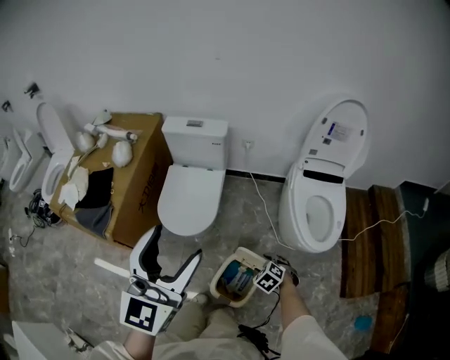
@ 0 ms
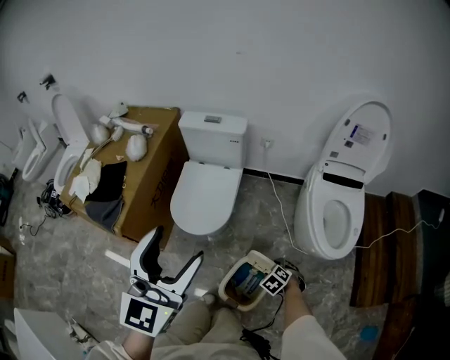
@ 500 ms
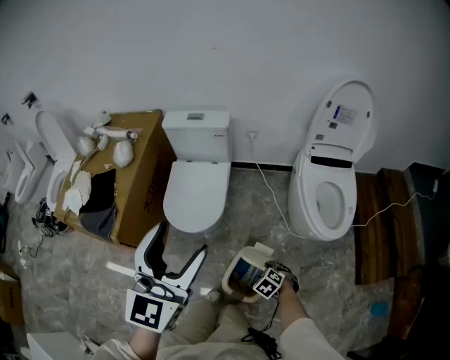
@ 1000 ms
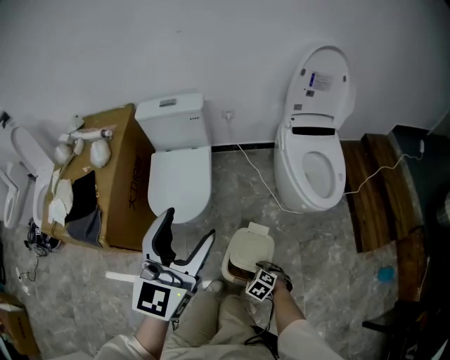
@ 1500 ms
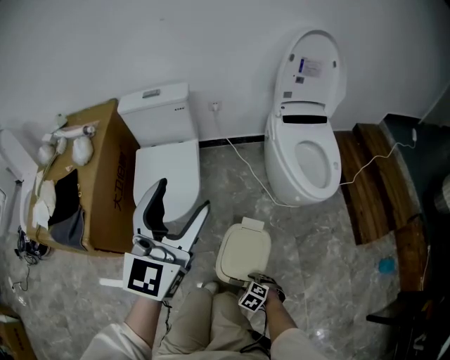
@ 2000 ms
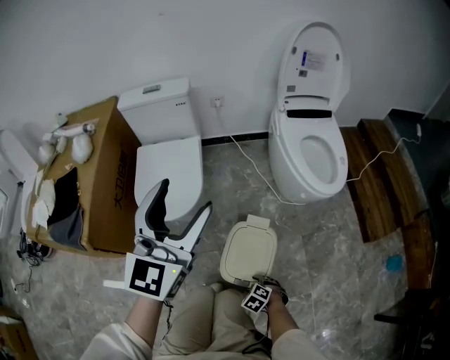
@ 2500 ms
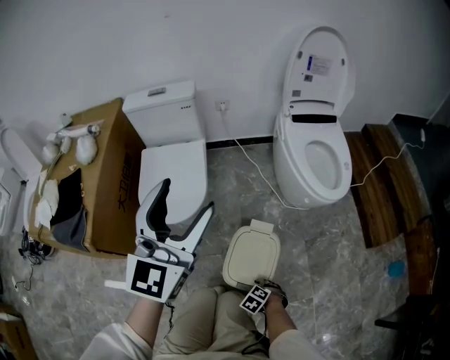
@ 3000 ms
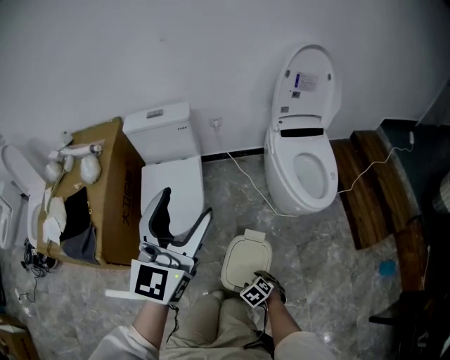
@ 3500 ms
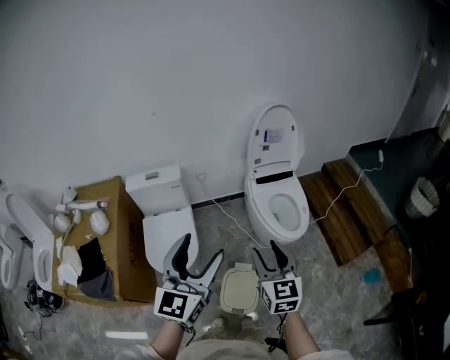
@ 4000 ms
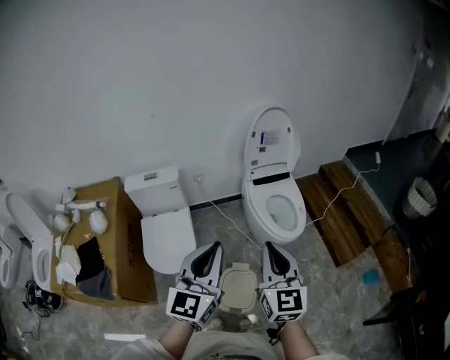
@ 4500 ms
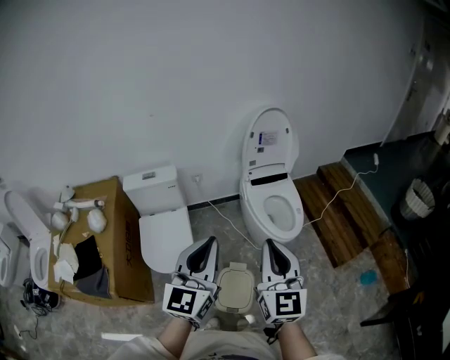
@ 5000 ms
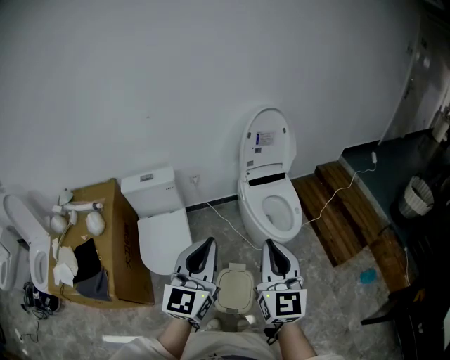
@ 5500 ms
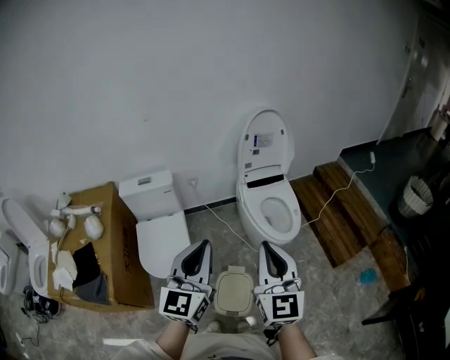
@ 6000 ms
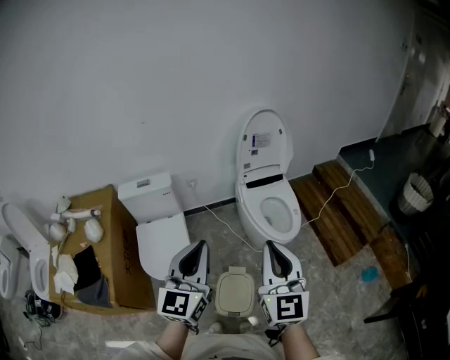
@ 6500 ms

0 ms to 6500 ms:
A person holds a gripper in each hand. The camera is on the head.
0 ms to 2000 ms: The right gripper changes place by some 30 cm; the left gripper travels downward by approximately 10 cm.
2000 ms to 4500 ms: The left gripper heads upward, covering some 15 cm, and closes its fingers, while the right gripper is displaced upward by roughly 70 cm, tilts its fingers roughly 70 degrees upward, and closes up.
4500 ms to 6500 ms: There are only small adjustments of the grippers.

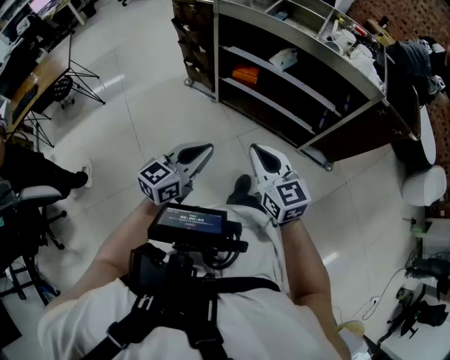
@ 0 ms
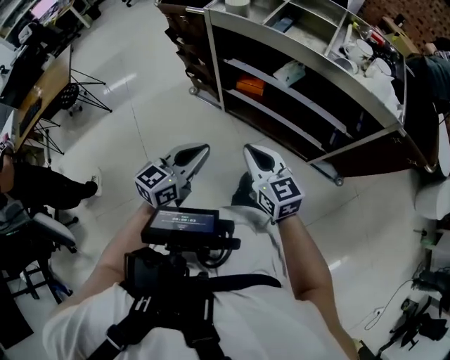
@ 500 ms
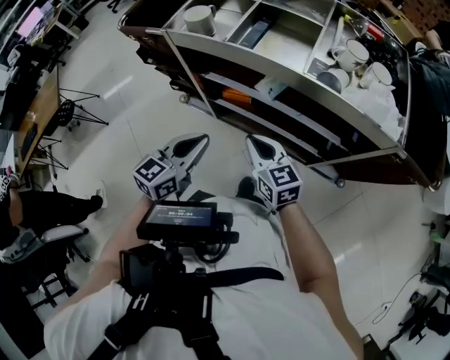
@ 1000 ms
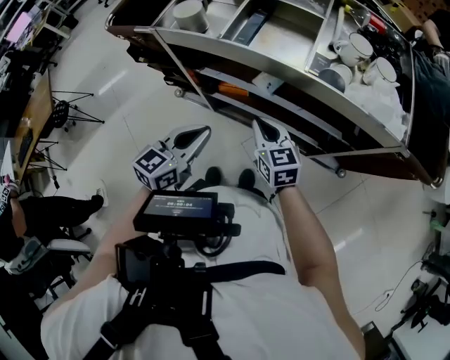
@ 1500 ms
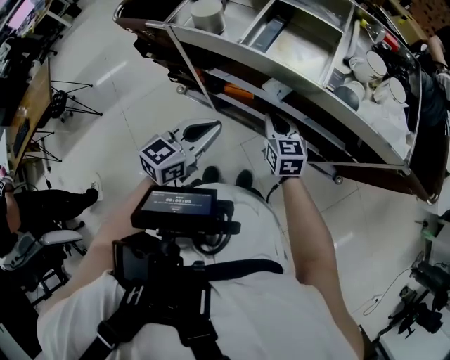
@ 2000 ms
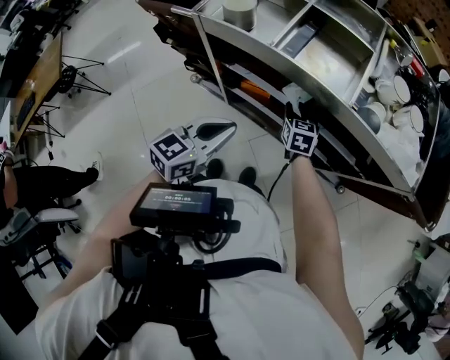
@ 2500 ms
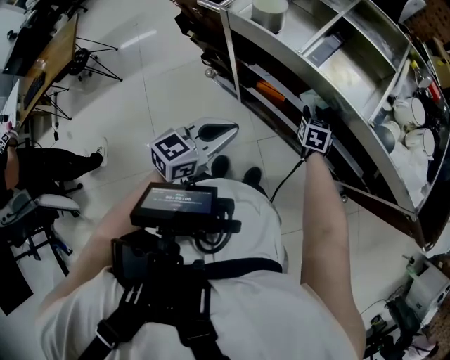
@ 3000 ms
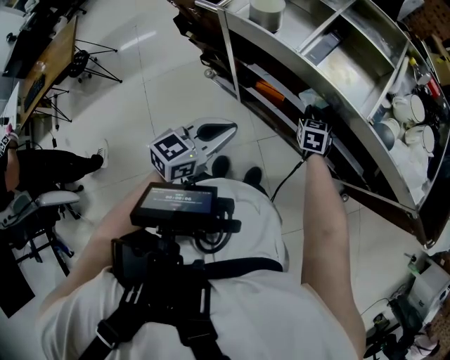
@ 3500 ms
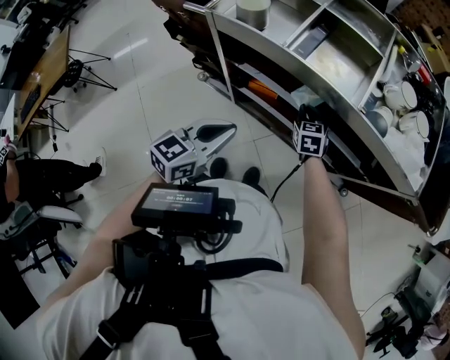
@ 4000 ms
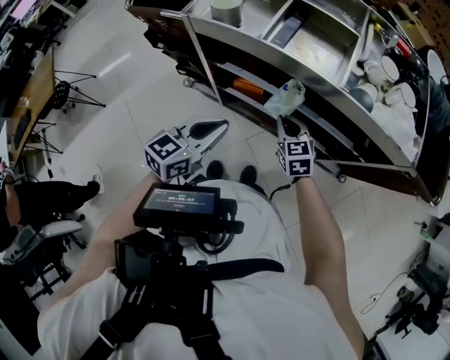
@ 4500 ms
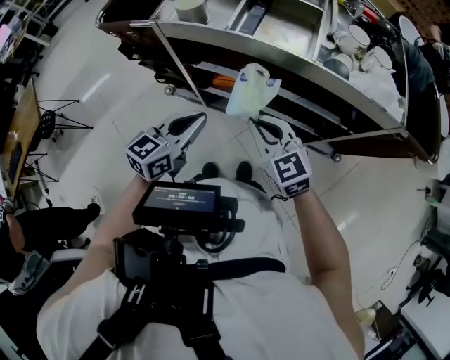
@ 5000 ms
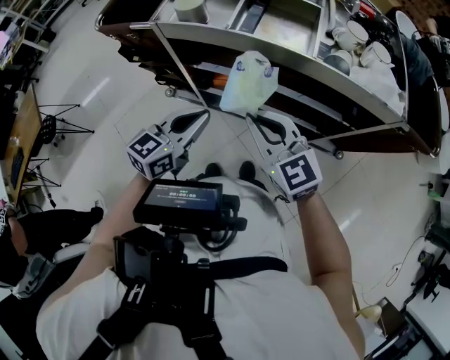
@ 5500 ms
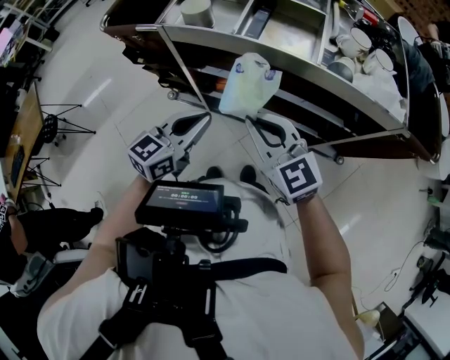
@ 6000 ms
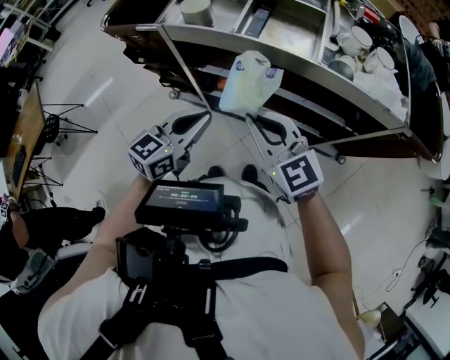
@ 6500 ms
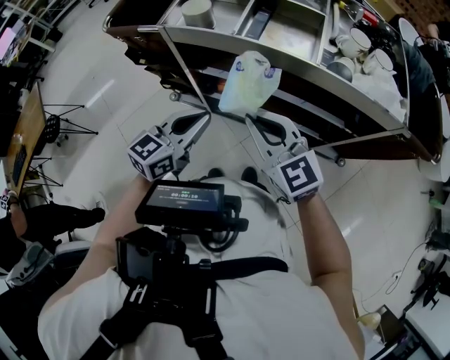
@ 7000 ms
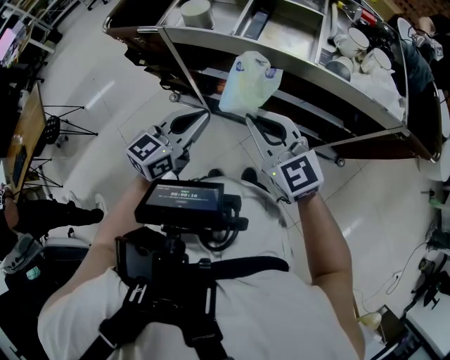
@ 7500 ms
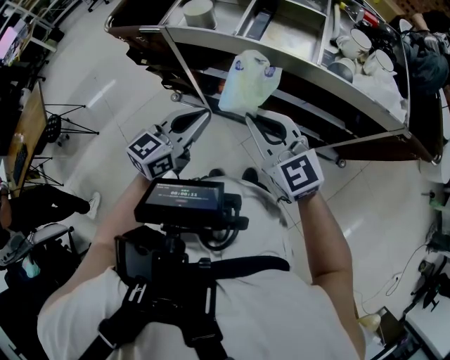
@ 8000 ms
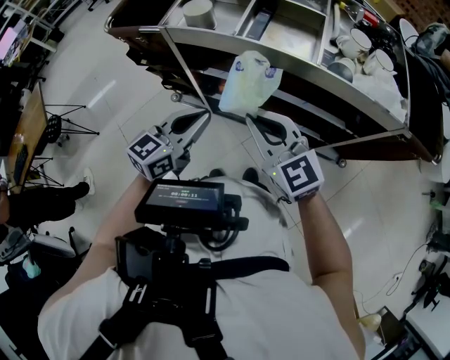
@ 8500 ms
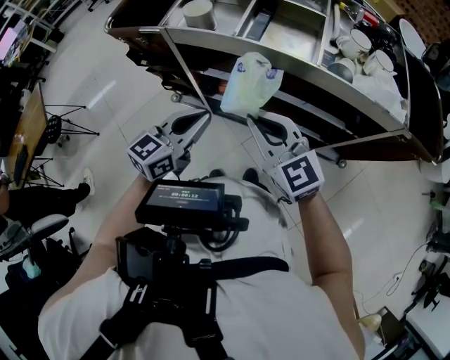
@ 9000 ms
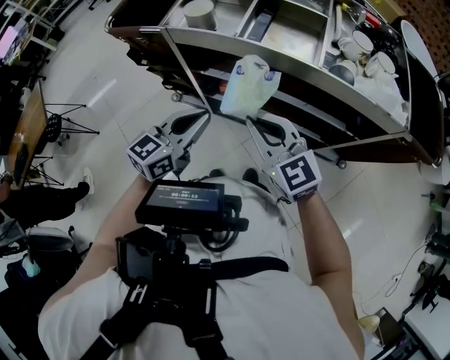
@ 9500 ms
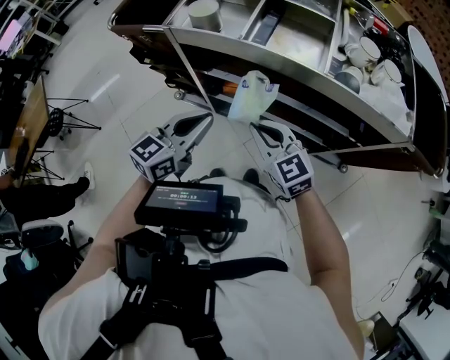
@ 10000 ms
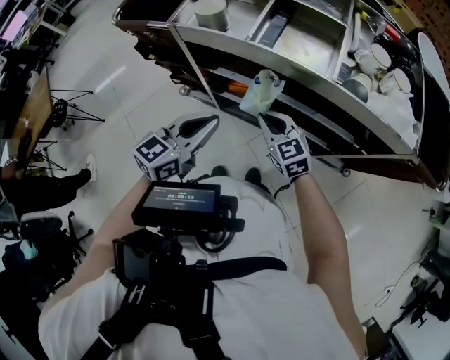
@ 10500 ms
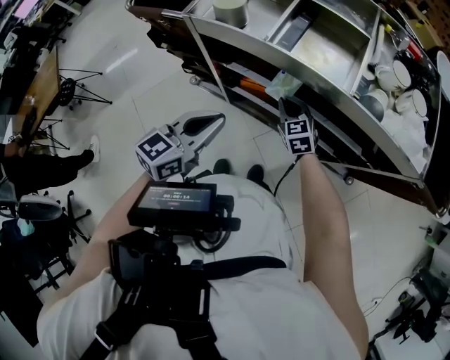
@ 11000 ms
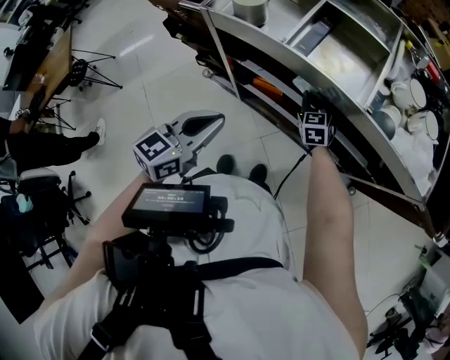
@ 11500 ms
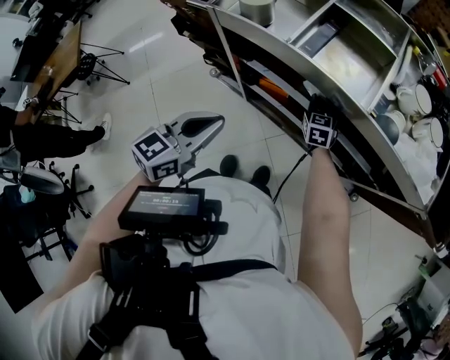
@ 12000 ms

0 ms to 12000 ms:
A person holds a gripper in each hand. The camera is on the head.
0 ms to 2000 ms: Both grippers move forward, roughly 40 cm.
2000 ms to 4000 ms: The right gripper travels forward and downward by approximately 10 cm, and opens, then closes again.
4000 ms to 6000 ms: The right gripper moves upward and backward, approximately 30 cm, and swivels approximately 30 degrees.
6000 ms to 8000 ms: Both grippers stay about where they are.
8000 ms to 10000 ms: The right gripper shifts roughly 10 cm downward.
10000 ms to 12000 ms: The right gripper is displaced forward and downward by some 30 cm, and swivels roughly 30 degrees.

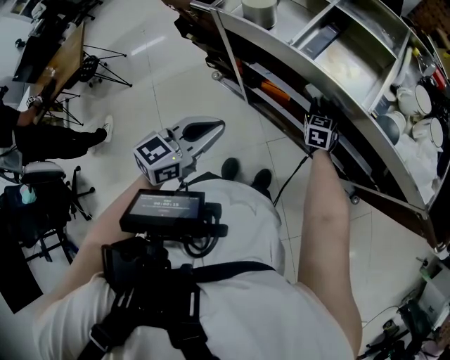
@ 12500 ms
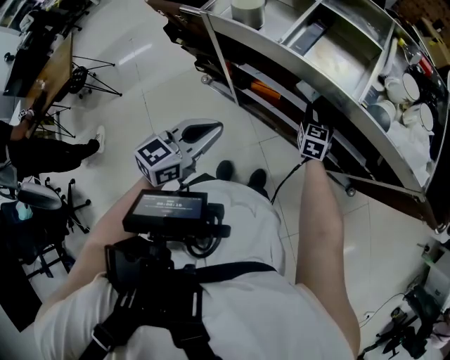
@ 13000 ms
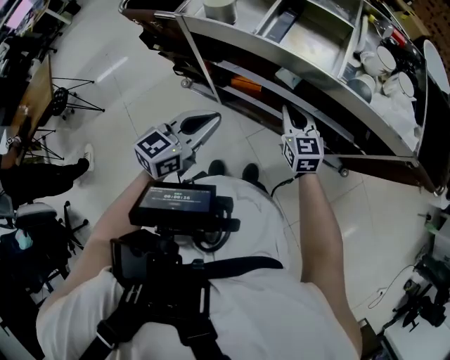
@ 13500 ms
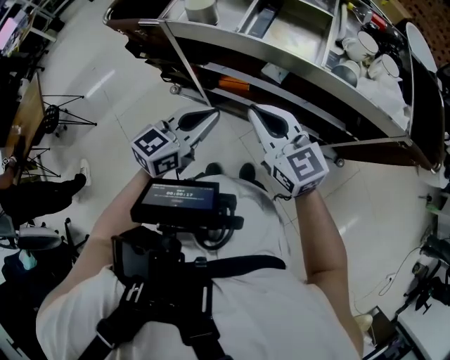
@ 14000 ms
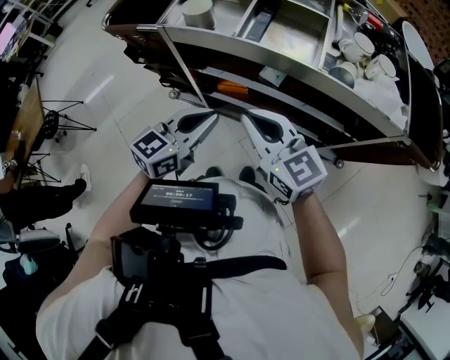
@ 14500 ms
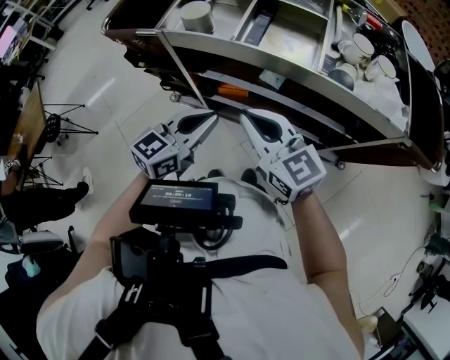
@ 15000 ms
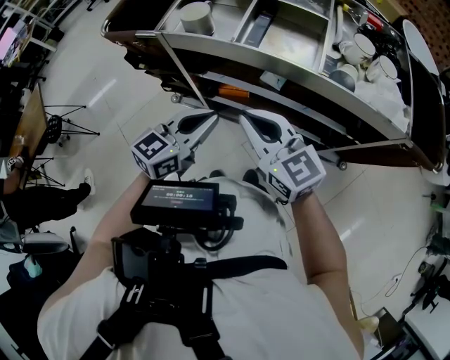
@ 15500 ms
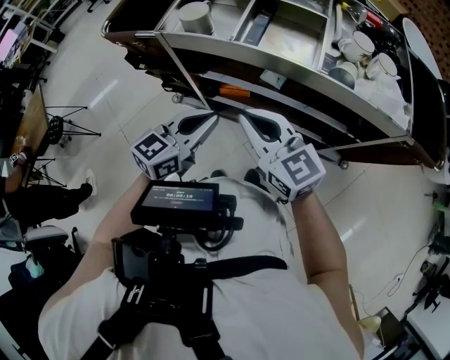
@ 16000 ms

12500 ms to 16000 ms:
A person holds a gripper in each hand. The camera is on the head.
12500 ms to 14500 ms: The left gripper ends up some 5 cm from where it was; the right gripper heads upward and backward, covering about 35 cm, and swivels some 40 degrees.
14500 ms to 16000 ms: Both grippers stay put.

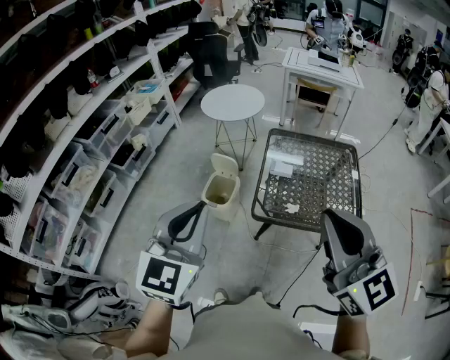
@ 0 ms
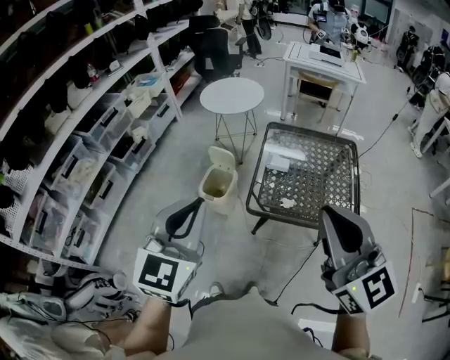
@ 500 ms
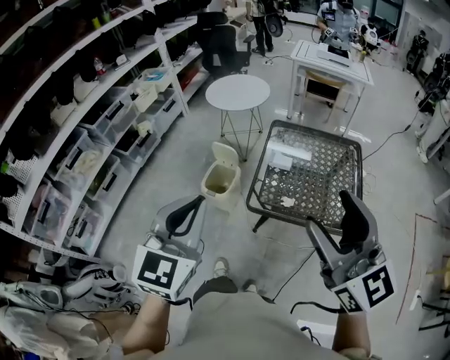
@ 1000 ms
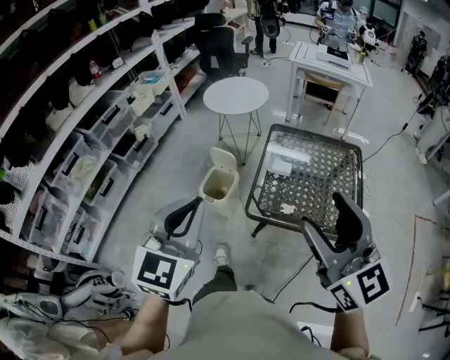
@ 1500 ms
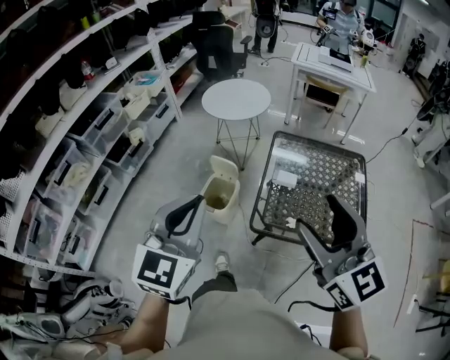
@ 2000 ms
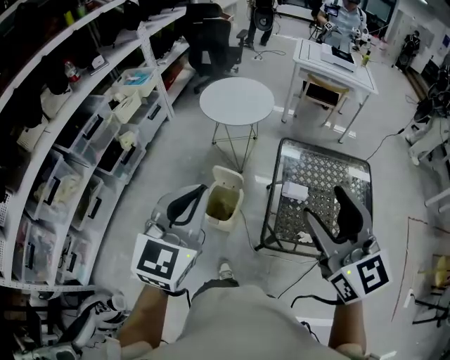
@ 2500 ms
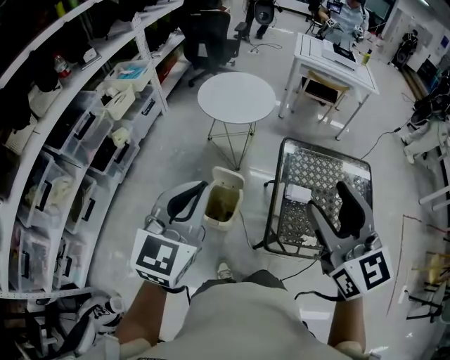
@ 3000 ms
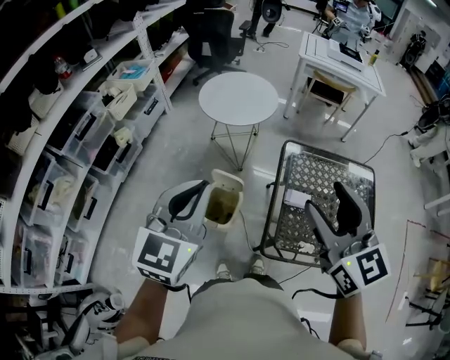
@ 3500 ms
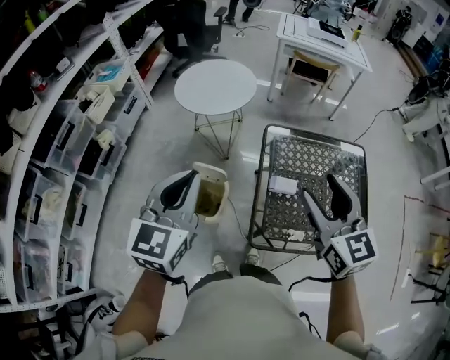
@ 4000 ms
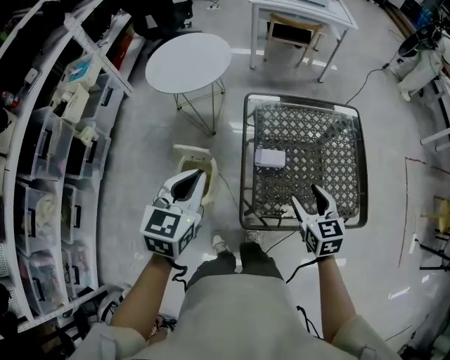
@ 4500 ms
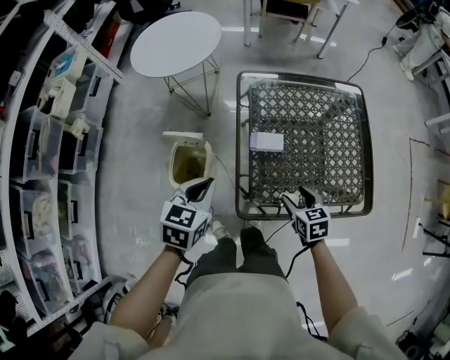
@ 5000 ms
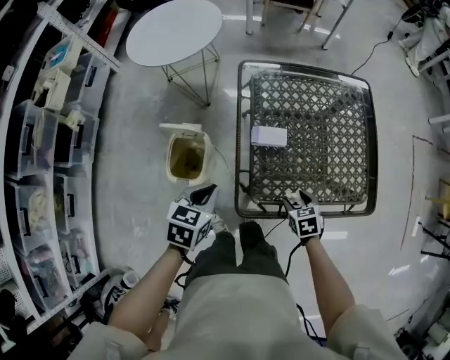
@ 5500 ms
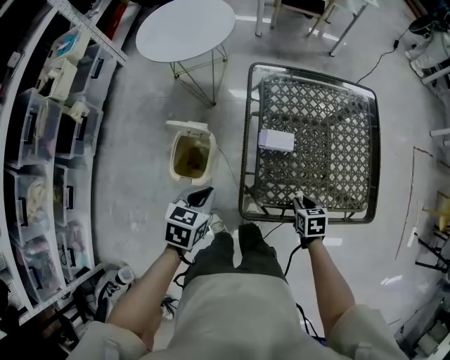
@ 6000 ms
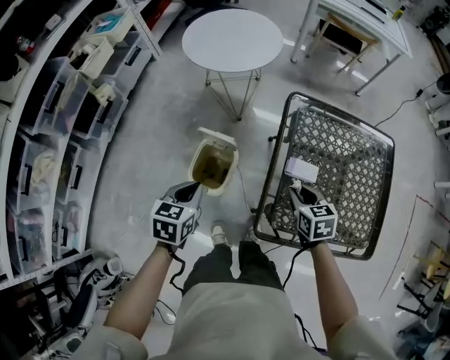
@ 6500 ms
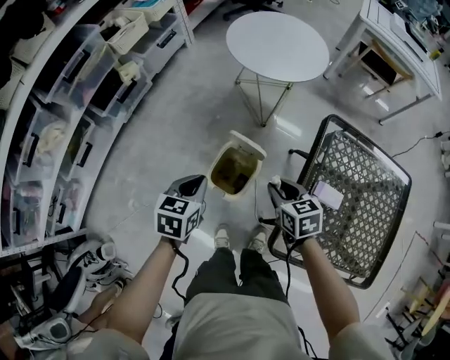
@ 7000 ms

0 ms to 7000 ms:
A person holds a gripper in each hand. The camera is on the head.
0 ms to 2000 ms: The grippers both shift forward by some 10 cm. The right gripper opens its fingers.
2000 ms to 3500 ms: Both grippers move forward, roughly 20 cm.
3500 ms to 5000 ms: The left gripper moves downward and to the right, about 30 cm, and rotates about 40 degrees; the right gripper moves downward and to the right, roughly 50 cm, and points its fingers approximately 40 degrees further downward.
5000 ms to 7000 ms: The left gripper ends up about 25 cm from where it was, and turns by roughly 30 degrees. The right gripper travels downward and back again, some 10 cm each way, turns by approximately 30 degrees, and closes up.
